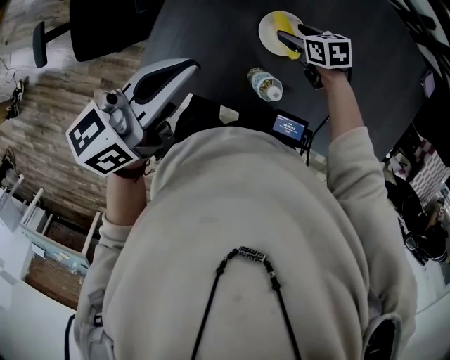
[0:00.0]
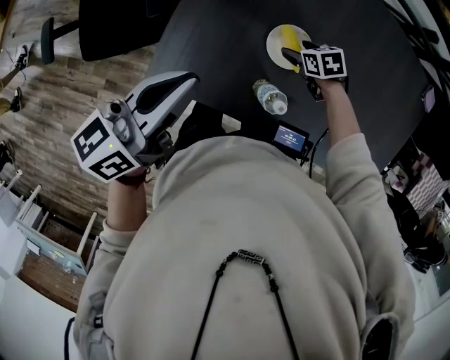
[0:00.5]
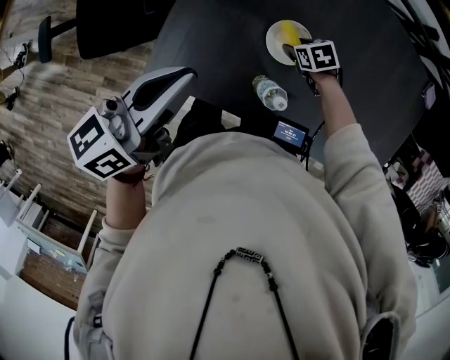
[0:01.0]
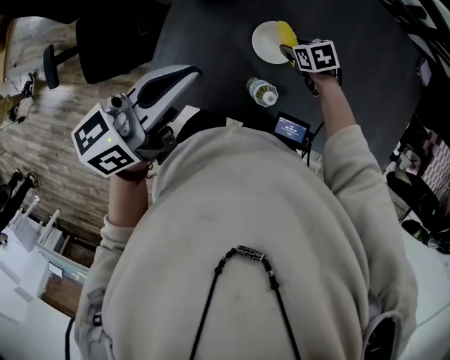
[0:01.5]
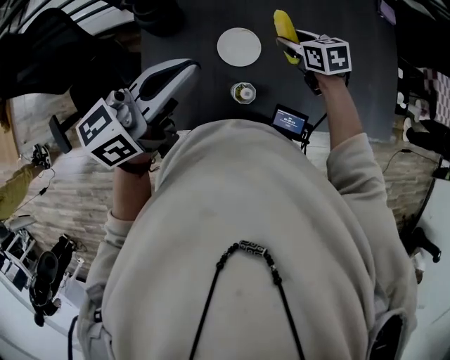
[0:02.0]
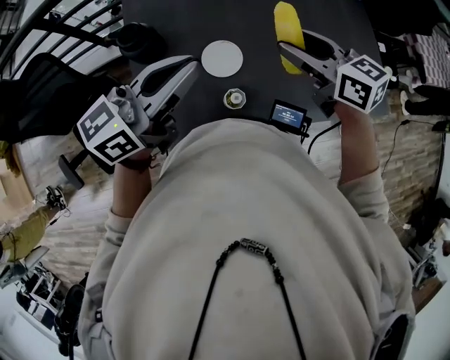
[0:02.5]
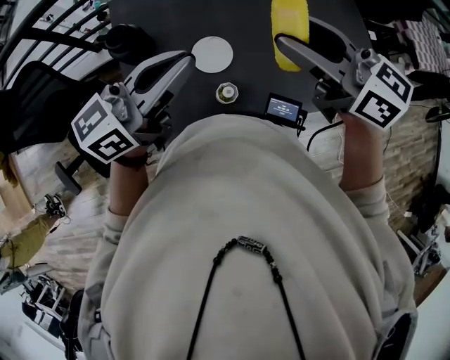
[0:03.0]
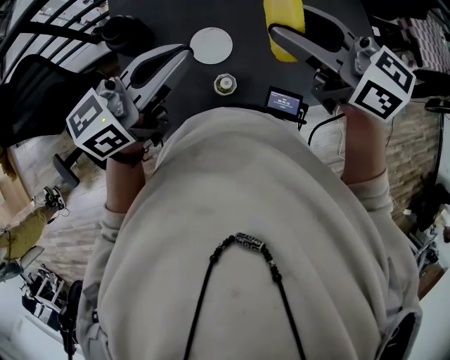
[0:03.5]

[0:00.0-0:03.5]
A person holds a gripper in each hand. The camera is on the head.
0:02.0 to 0:03.5: The right gripper goes about 30 cm upward, and tips its fingers upward by some 40 degrees; the left gripper moves some 5 cm.

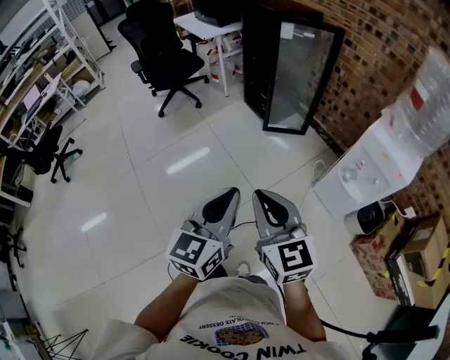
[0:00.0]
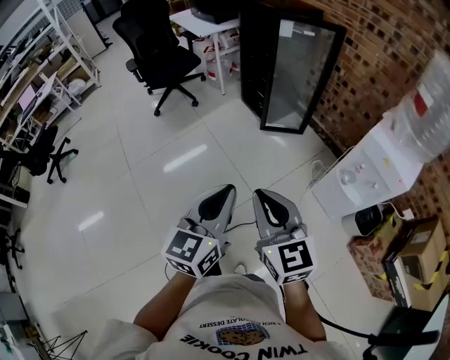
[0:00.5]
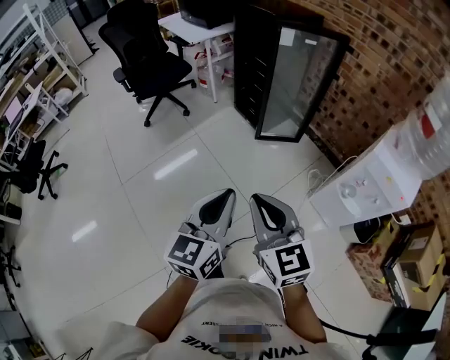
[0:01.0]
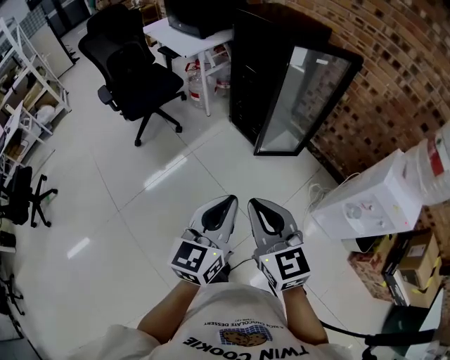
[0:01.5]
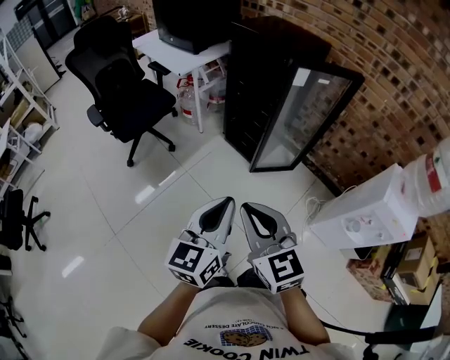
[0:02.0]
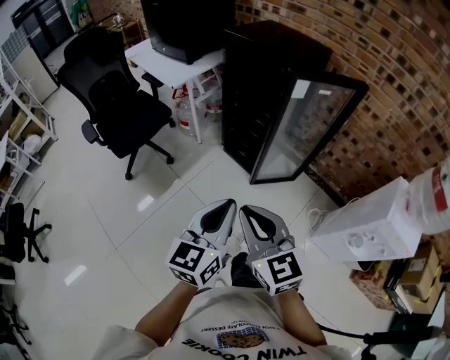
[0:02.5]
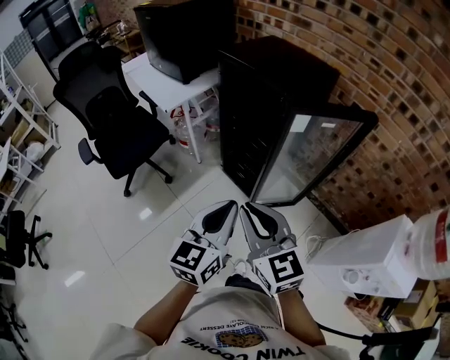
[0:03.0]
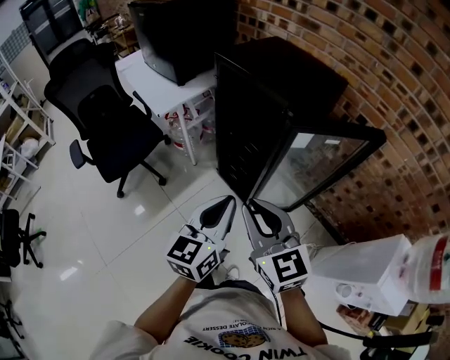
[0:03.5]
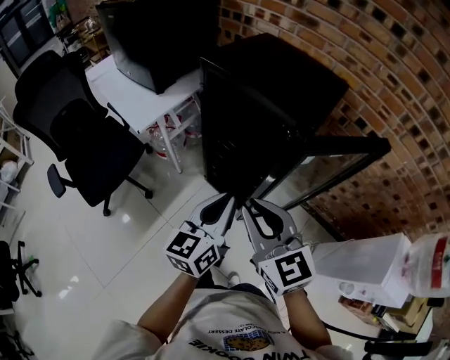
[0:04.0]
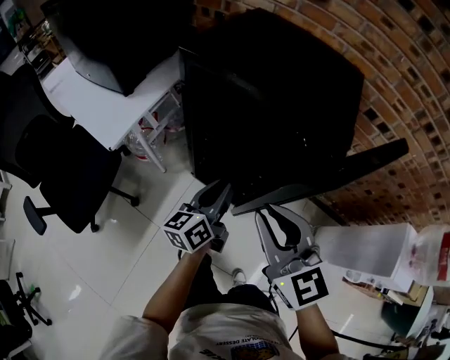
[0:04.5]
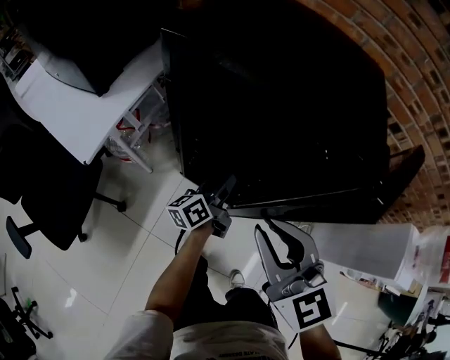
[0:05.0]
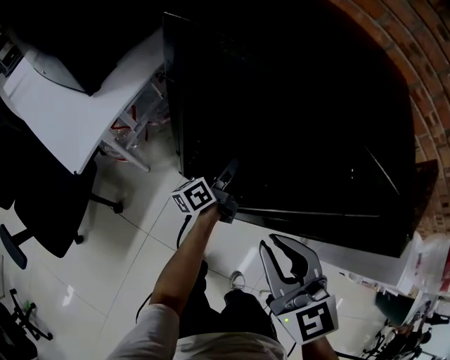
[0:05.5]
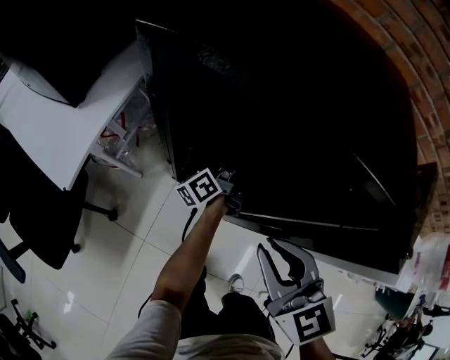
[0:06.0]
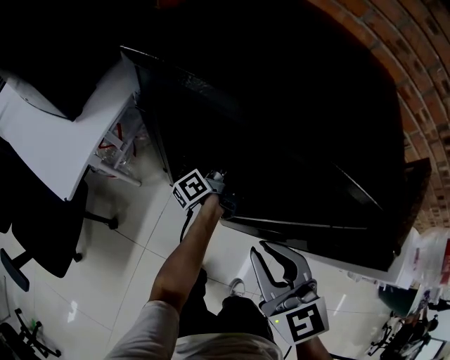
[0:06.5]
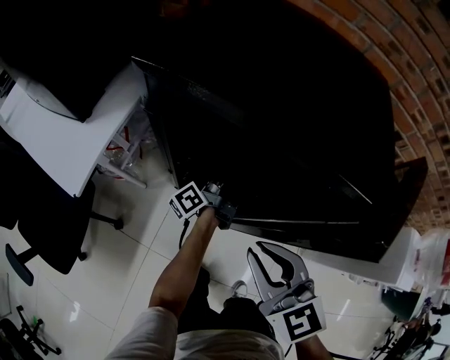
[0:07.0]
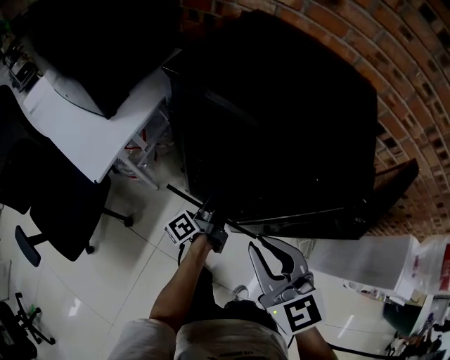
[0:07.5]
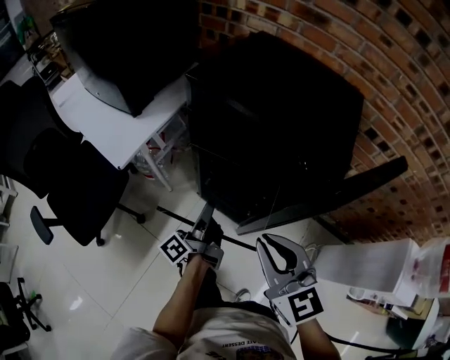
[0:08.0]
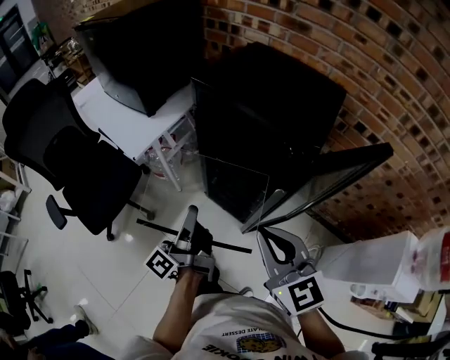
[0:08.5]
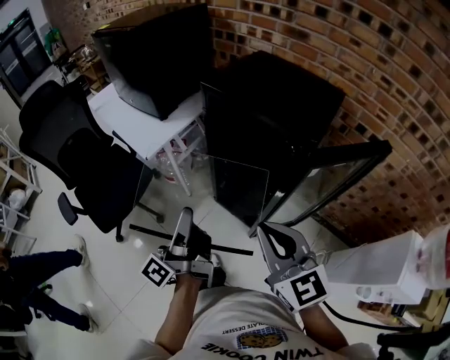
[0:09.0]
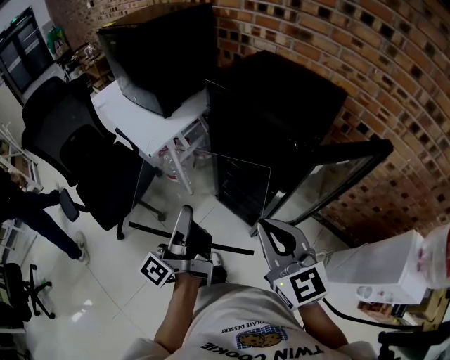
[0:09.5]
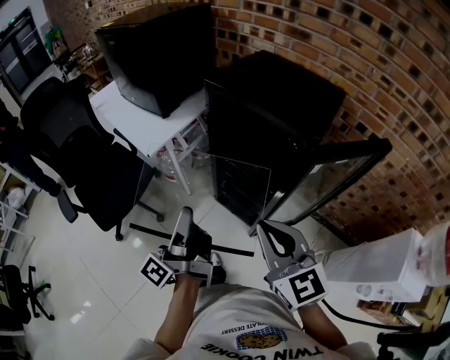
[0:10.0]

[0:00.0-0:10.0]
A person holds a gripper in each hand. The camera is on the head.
0:00.0 to 0:02.0: The two grippers travel together, forward and to the left, approximately 40 cm.
0:02.0 to 0:04.0: The two grippers go some 40 cm forward.
0:04.0 to 0:06.0: The left gripper moves forward and downward, about 40 cm, rotates around the line of its fingers by about 50 degrees, counterclockwise from behind, and opens, then closes once more. Meanwhile the right gripper is displaced forward and downward by some 20 cm, and rotates about 20 degrees.
0:06.0 to 0:08.0: The left gripper goes roughly 25 cm backward, upward and to the left; the right gripper is displaced upward and backward by approximately 10 cm.
0:08.0 to 0:10.0: The right gripper moves backward and upward, about 10 cm. The left gripper travels upward, backward and to the left by some 25 cm, and turns by roughly 20 degrees.

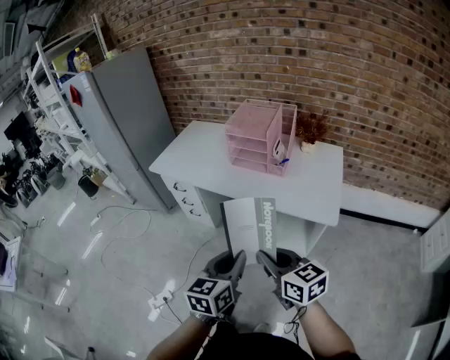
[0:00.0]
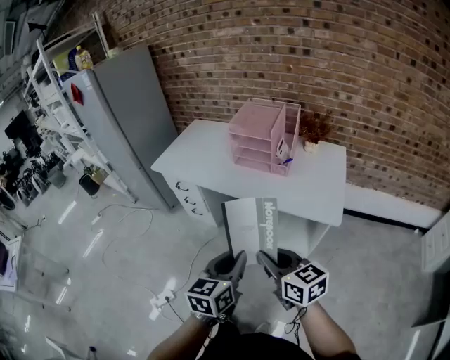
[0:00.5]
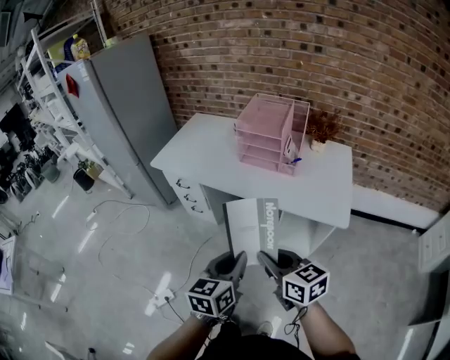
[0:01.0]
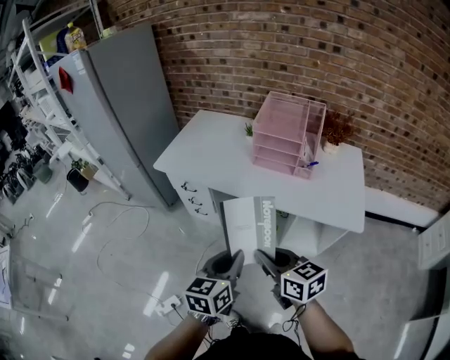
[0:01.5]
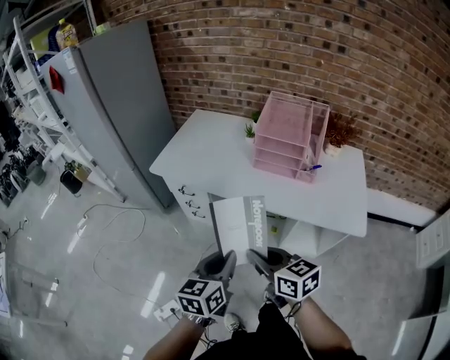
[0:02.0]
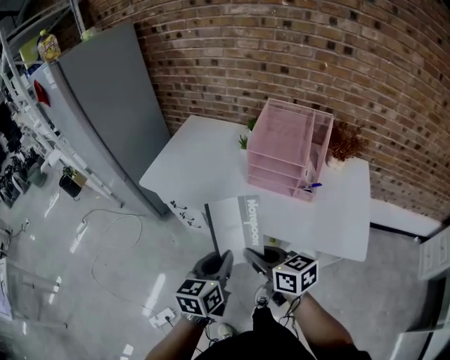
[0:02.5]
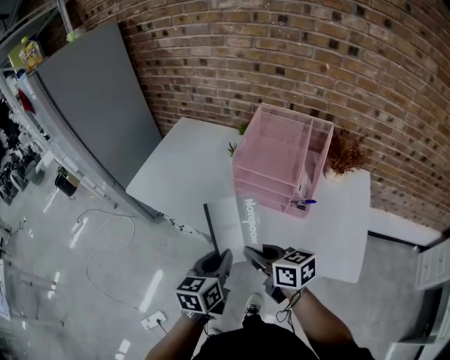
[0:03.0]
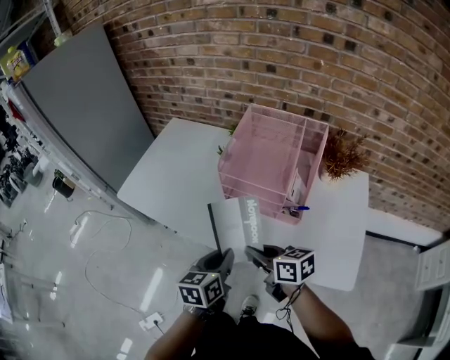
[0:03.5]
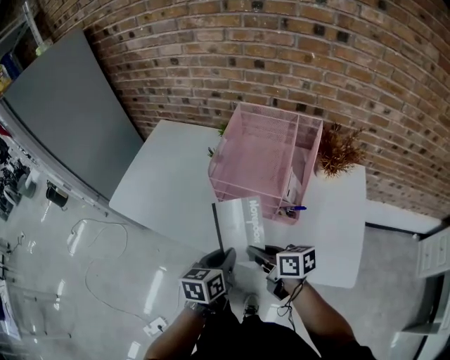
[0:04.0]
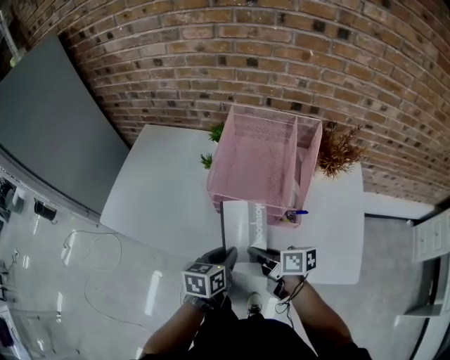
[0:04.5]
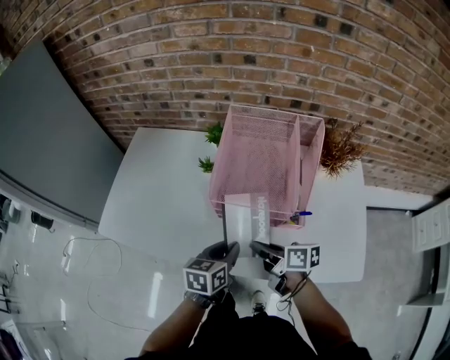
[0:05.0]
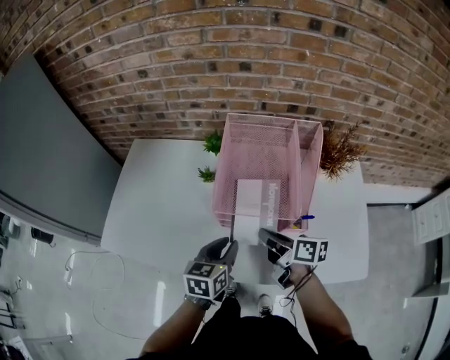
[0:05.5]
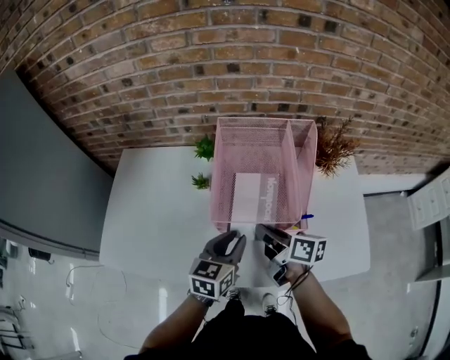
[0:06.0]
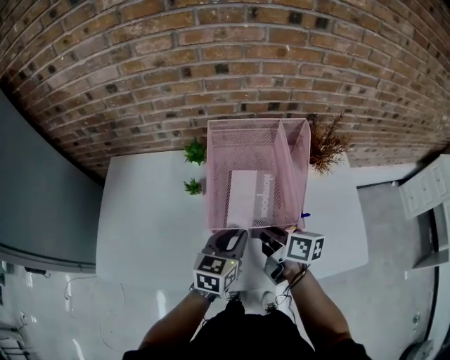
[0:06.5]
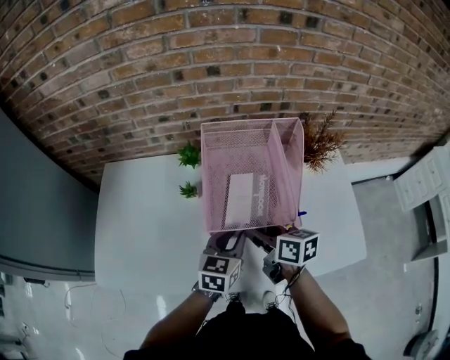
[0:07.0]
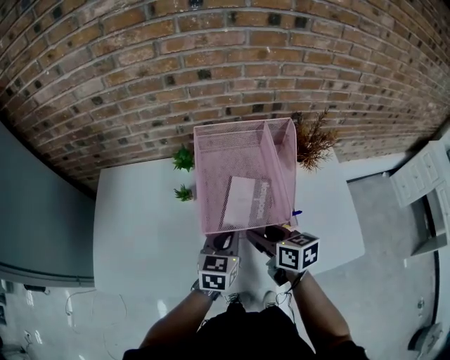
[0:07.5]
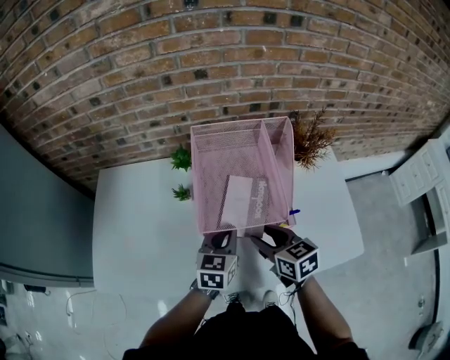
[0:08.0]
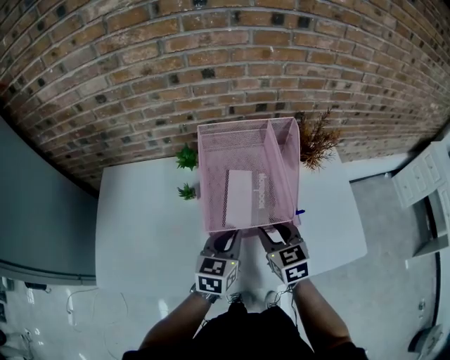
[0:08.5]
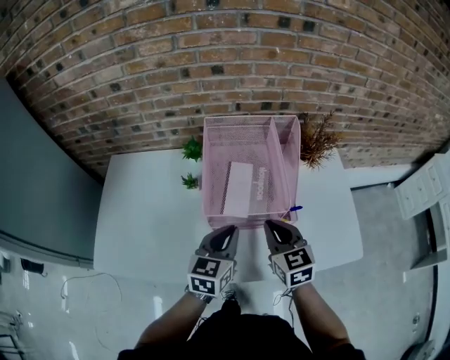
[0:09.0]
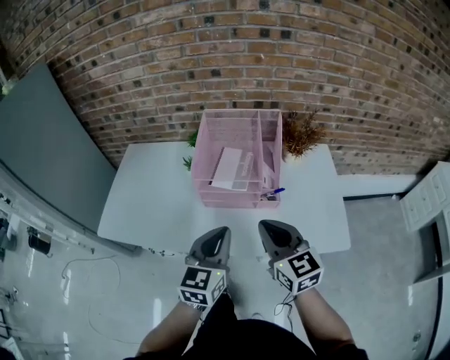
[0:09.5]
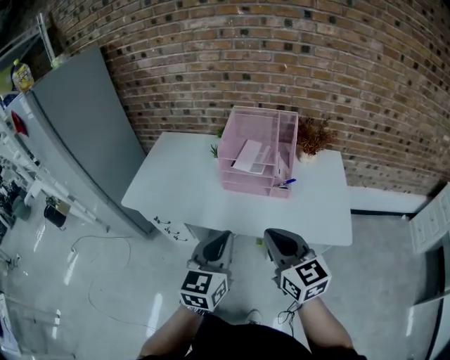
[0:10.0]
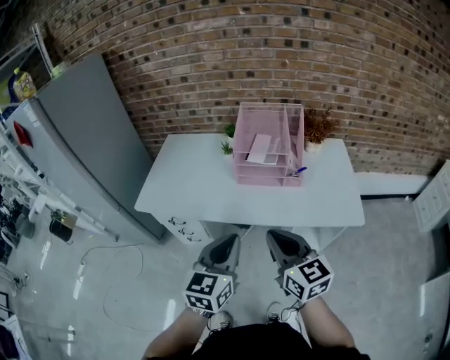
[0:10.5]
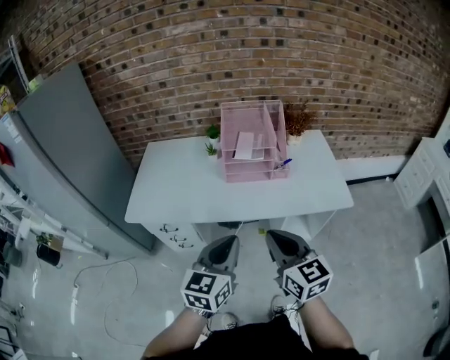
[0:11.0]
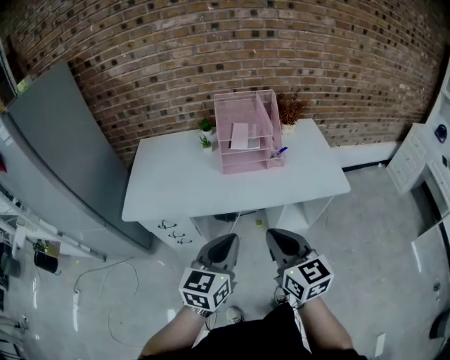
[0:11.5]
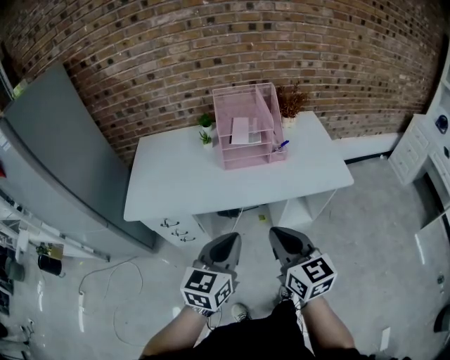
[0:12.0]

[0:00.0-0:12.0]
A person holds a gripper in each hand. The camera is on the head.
0:00.0 to 0:02.0: Both grippers travel together to the left and forward, roughly 25 cm.
0:02.0 to 0:04.0: Both grippers travel together forward, to the right and downward, about 35 cm. The right gripper swivels roughly 30 degrees.
0:04.0 to 0:06.0: The two grippers go about 15 cm forward. The right gripper rotates some 30 degrees, while the left gripper rotates roughly 30 degrees.
0:06.0 to 0:08.0: The right gripper swivels roughly 40 degrees, and opens.
0:08.0 to 0:10.0: The grippers both shift backward and upward by approximately 35 cm. The left gripper turns by approximately 20 degrees; the right gripper turns by about 30 degrees, and closes.
0:10.0 to 0:12.0: The left gripper travels to the left and backward by approximately 15 cm, and rotates approximately 20 degrees; the right gripper is displaced backward and to the left by roughly 15 cm, and turns by some 20 degrees.

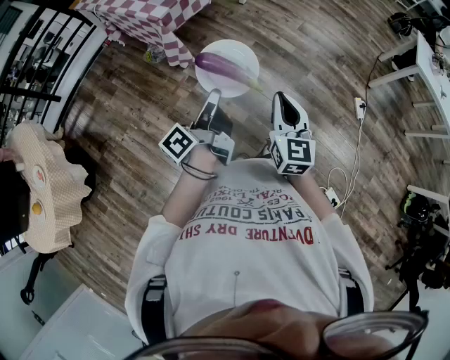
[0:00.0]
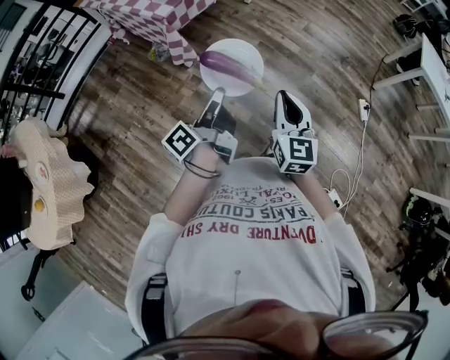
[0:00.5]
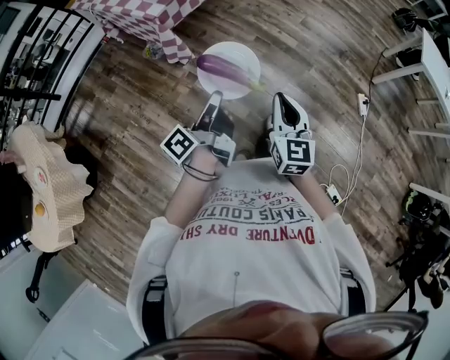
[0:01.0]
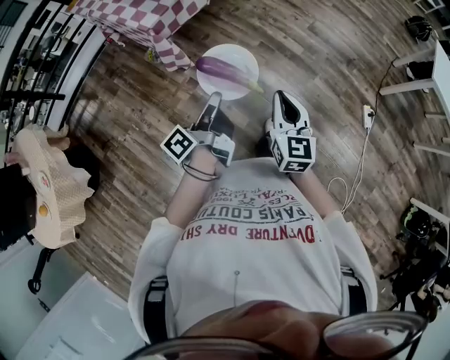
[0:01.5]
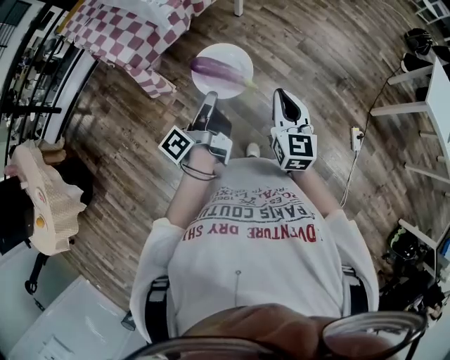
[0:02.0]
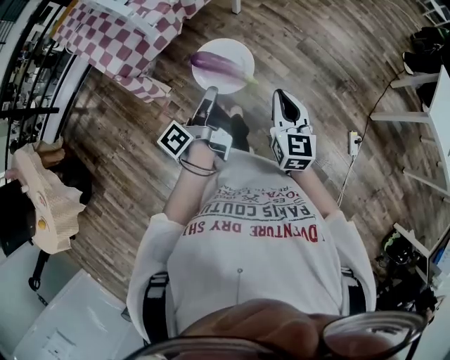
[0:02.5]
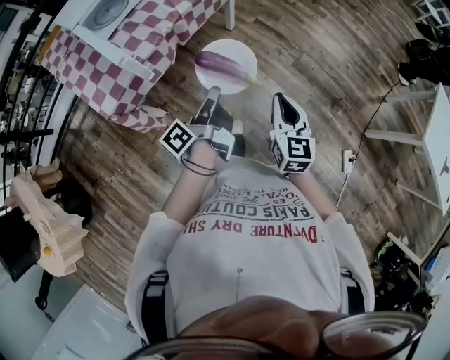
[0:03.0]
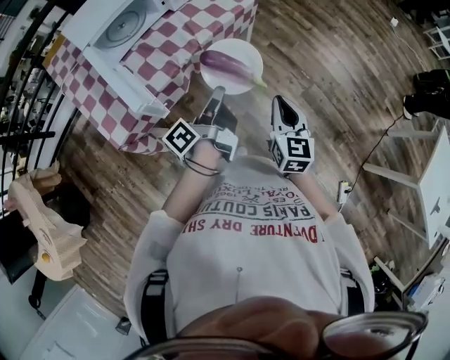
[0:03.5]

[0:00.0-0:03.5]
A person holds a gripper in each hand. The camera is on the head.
0:00.0 to 0:02.0: The right gripper shifts by some 35 cm.
0:02.0 to 0:03.5: The right gripper ends up approximately 40 cm from where it was.
